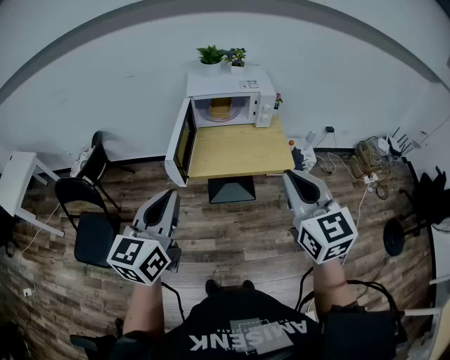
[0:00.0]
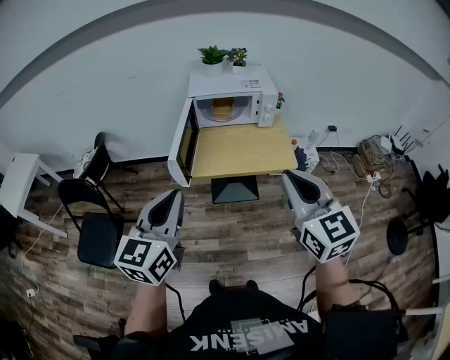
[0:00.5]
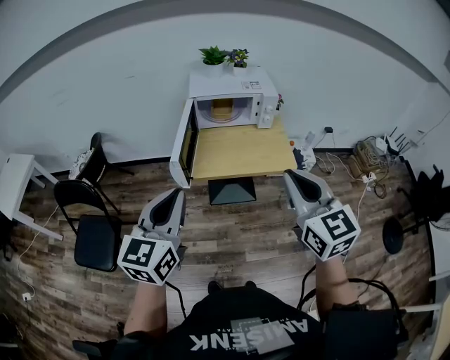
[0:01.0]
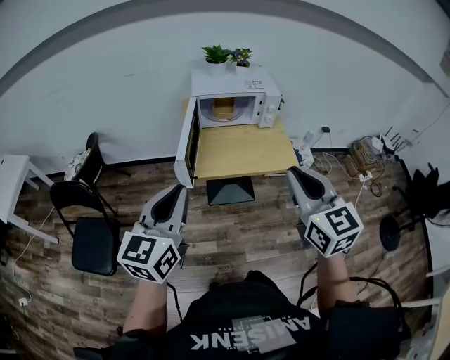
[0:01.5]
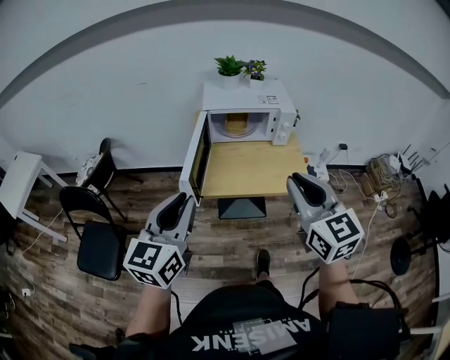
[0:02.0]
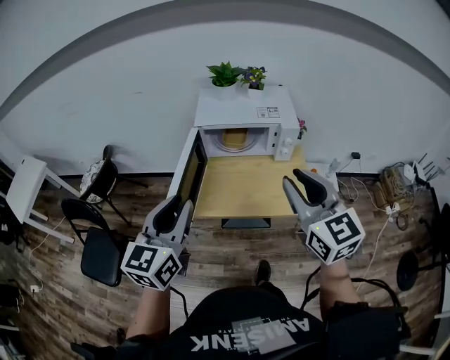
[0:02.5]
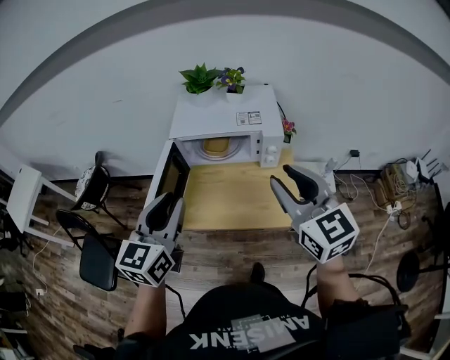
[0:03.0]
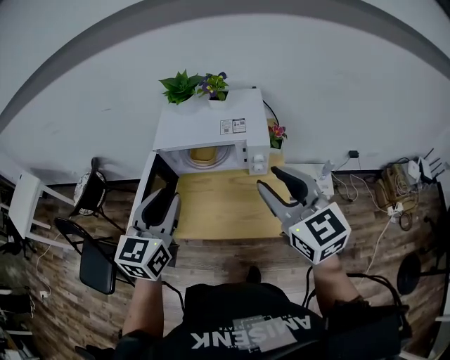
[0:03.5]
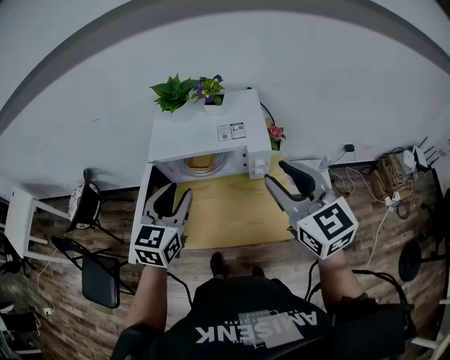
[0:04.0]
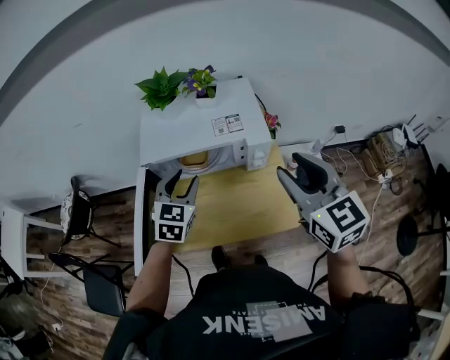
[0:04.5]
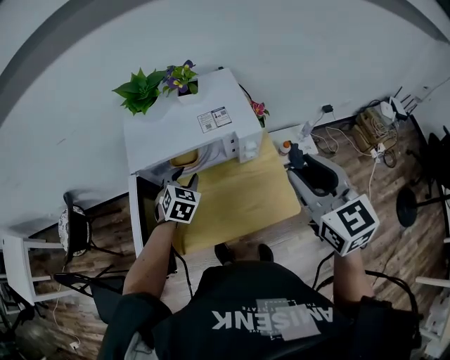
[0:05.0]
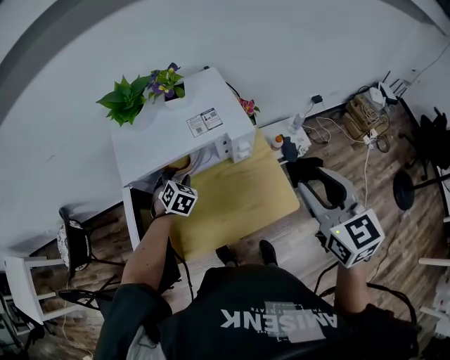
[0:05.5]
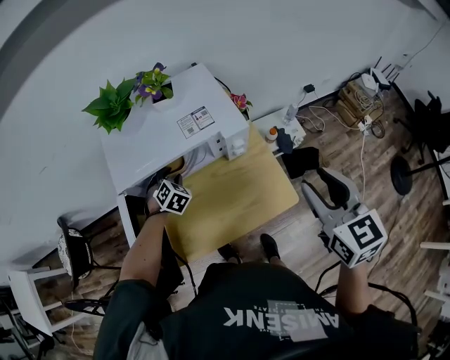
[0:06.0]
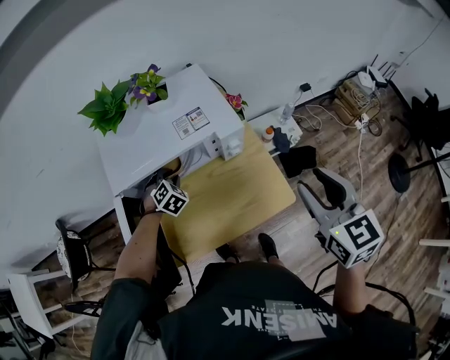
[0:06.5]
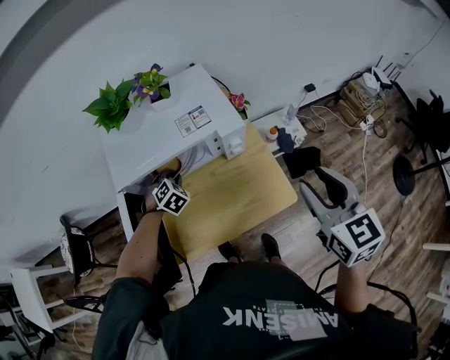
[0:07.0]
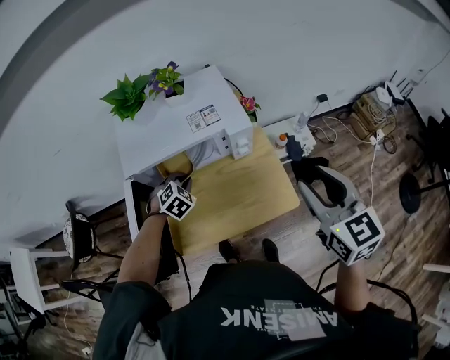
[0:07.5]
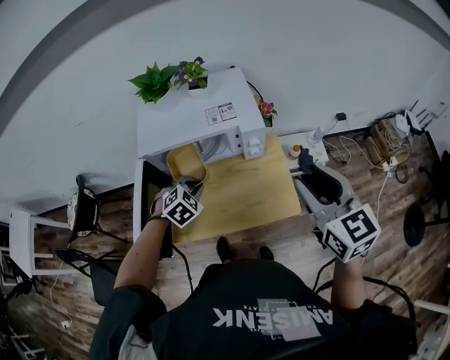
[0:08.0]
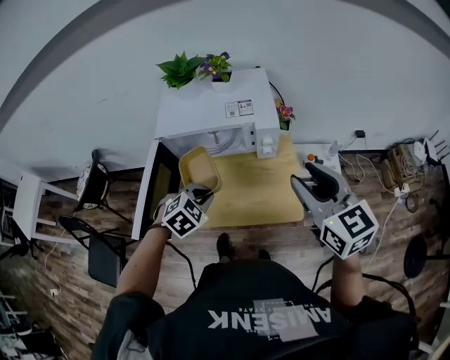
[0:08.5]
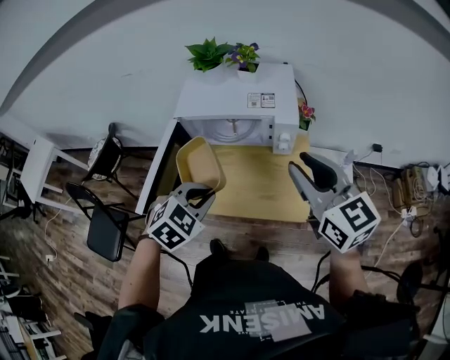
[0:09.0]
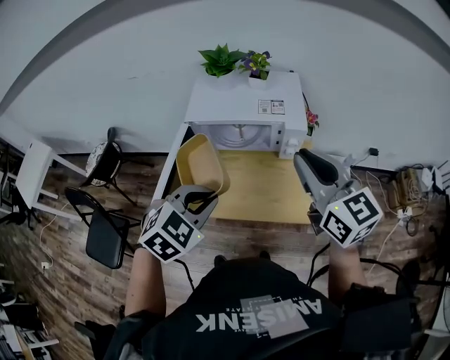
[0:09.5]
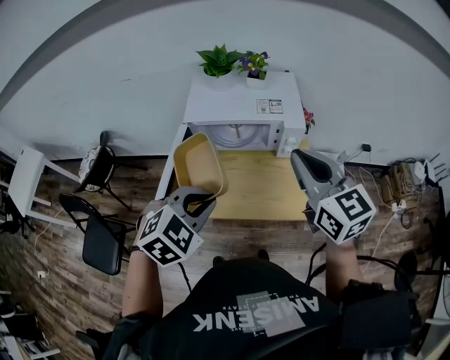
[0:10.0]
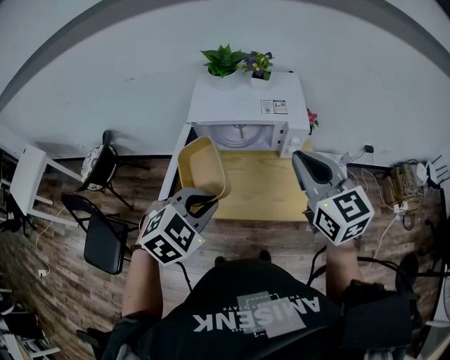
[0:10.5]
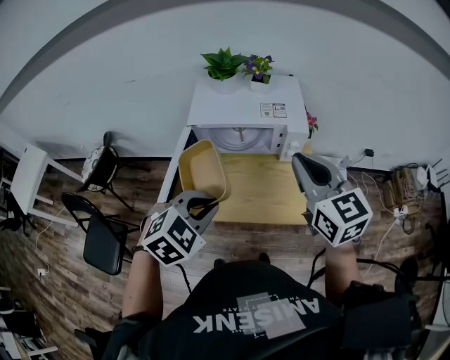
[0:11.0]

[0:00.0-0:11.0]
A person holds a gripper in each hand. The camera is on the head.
0:00.0 to 0:02.0: Both grippers travel together forward, about 10 cm.
0:02.0 to 0:03.5: The two grippers go roughly 30 cm forward and to the right. The right gripper opens.
0:03.5 to 0:05.5: The left gripper goes about 40 cm downward and forward, and tilts its fingers approximately 40 degrees downward, while the right gripper shifts roughly 10 cm downward and to the right, and rotates approximately 30 degrees.
0:05.5 to 0:07.5: The left gripper travels backward by some 5 cm, and closes its fingers.
0:07.5 to 0:09.0: The left gripper heads backward and upward, covering about 25 cm. Meanwhile the right gripper moves to the left, roughly 5 cm, and changes its angle by about 30 degrees.
0:09.0 to 0:11.0: The right gripper travels to the left by about 5 cm, and closes. The left gripper moves upward, roughly 5 cm.

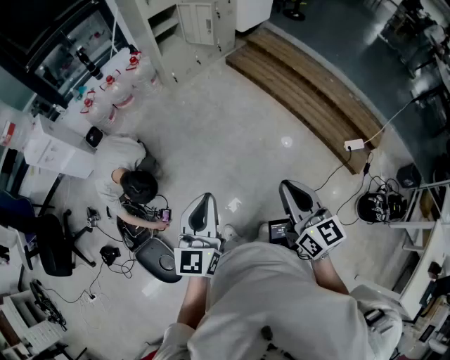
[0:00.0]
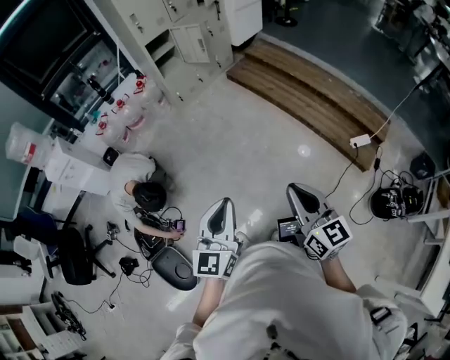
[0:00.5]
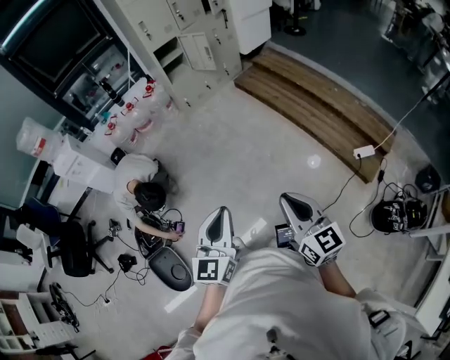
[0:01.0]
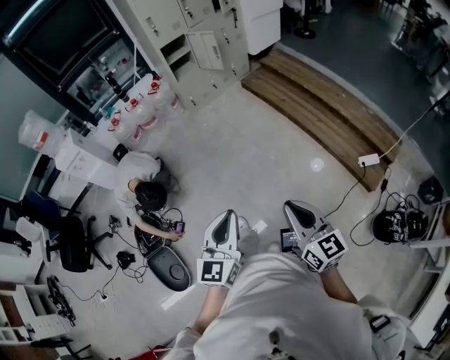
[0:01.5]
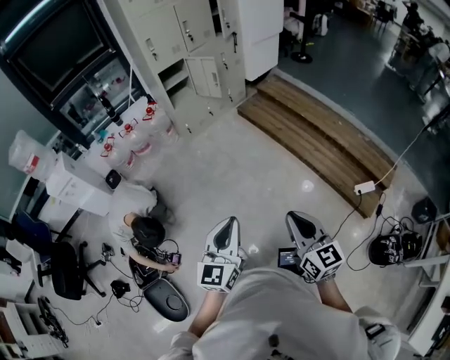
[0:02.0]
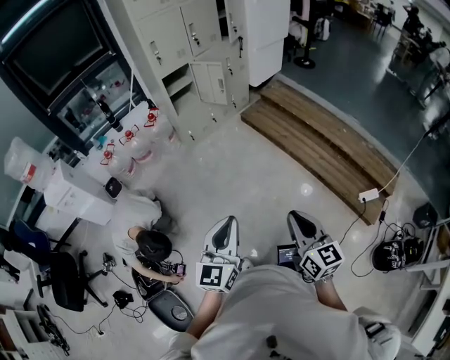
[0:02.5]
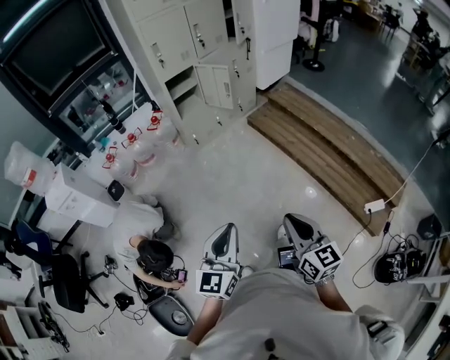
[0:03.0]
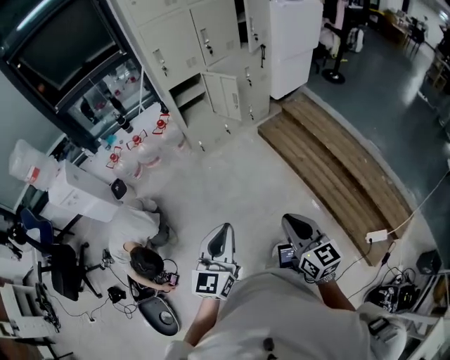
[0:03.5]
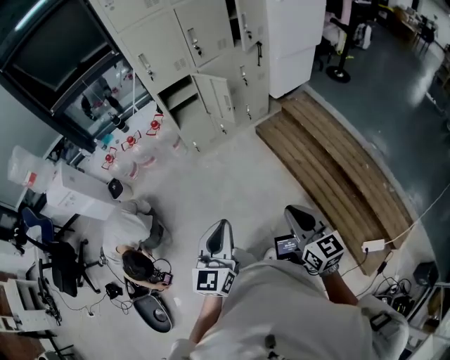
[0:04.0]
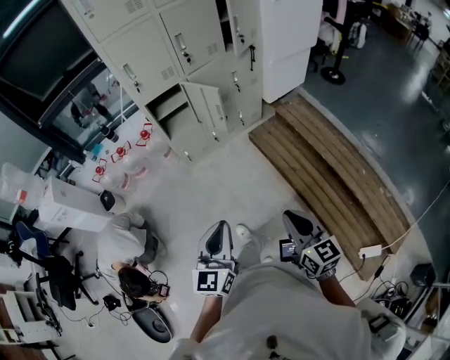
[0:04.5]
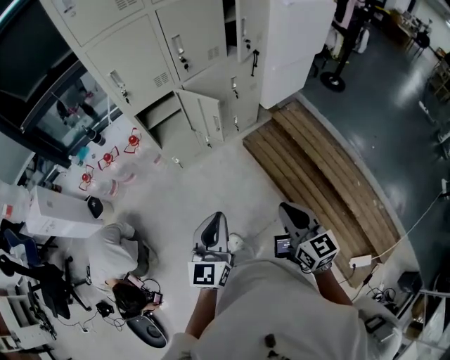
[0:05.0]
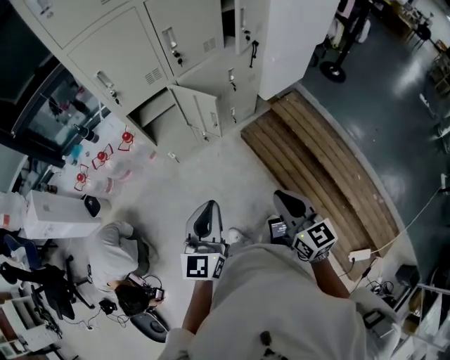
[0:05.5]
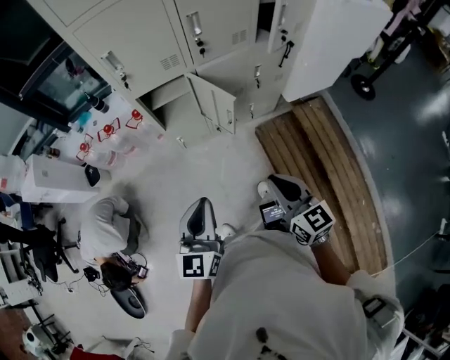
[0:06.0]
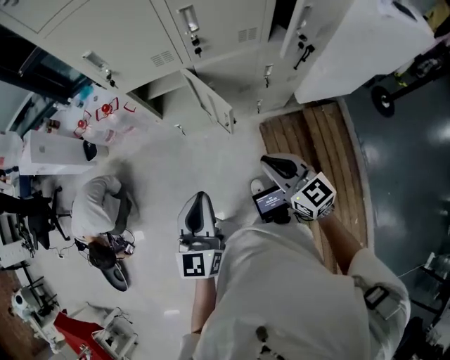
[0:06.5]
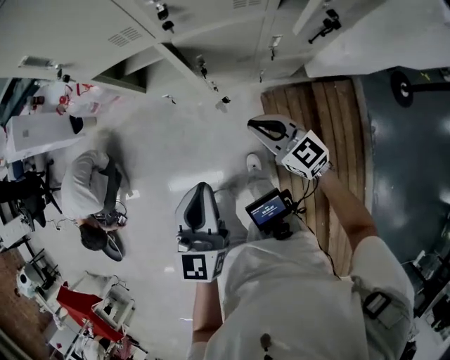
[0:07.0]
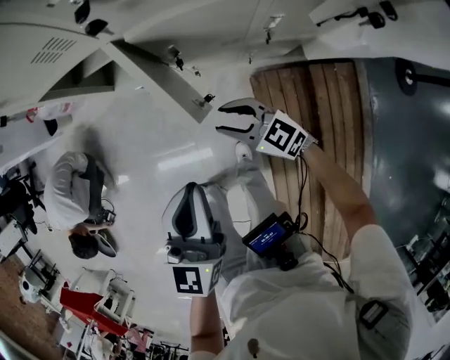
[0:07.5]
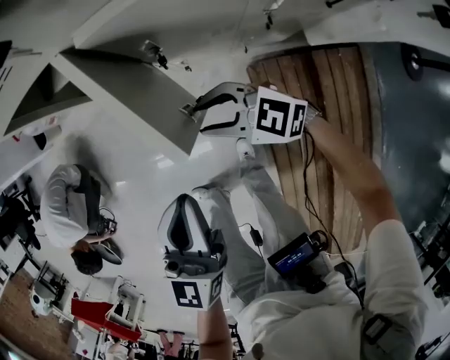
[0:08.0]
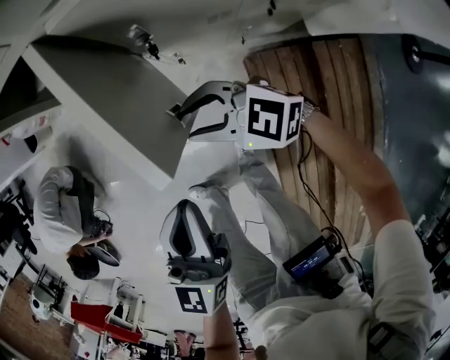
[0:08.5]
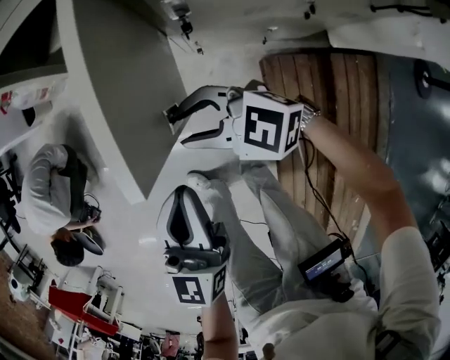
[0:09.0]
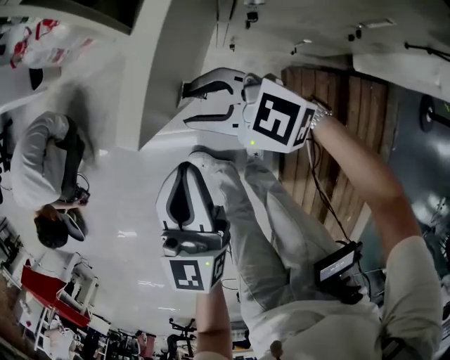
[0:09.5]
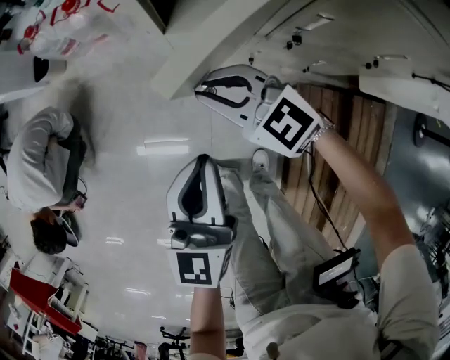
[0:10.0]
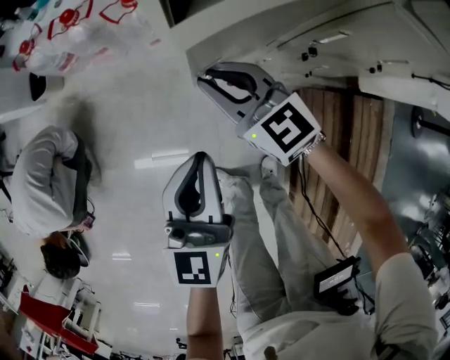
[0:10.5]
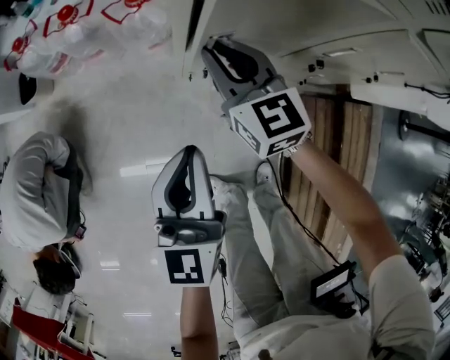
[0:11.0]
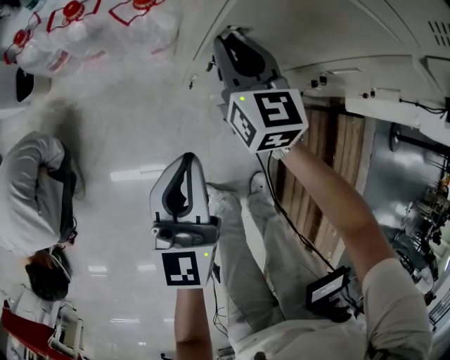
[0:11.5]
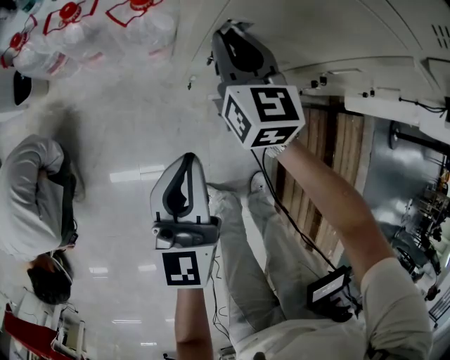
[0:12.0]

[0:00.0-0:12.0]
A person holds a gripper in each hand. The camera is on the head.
0:00.0 to 0:02.0: Both grippers travel together to the right, about 15 cm. The right gripper goes backward and returns, roughly 10 cm each way, while the left gripper moves roughly 10 cm backward and comes back.
0:02.0 to 0:04.0: Both grippers move forward, approximately 40 cm.
0:04.0 to 0:06.0: The grippers both shift forward by about 40 cm.
0:06.0 to 0:08.0: The right gripper moves downward, roughly 35 cm, swivels some 70 degrees, and opens its fingers. Meanwhile the left gripper changes place by roughly 35 cm.
0:08.0 to 0:10.0: The right gripper heads to the left and forward, covering about 25 cm, and closes its fingers. The left gripper is displaced to the left, forward and downward by approximately 25 cm.
0:10.0 to 0:12.0: The right gripper changes place by roughly 20 cm, and rotates approximately 50 degrees; the left gripper moves approximately 15 cm.

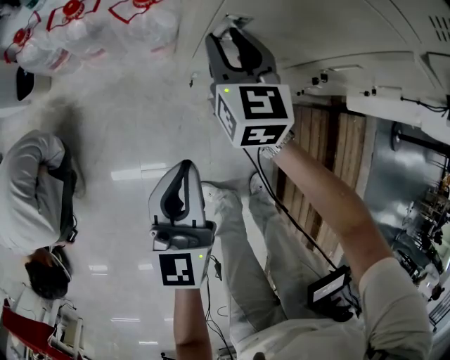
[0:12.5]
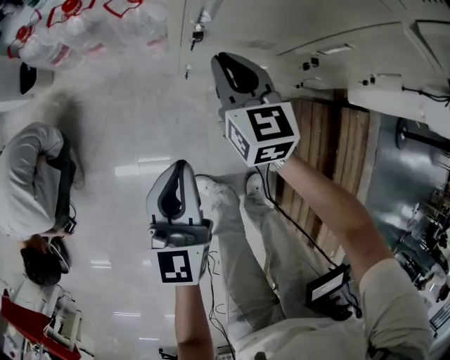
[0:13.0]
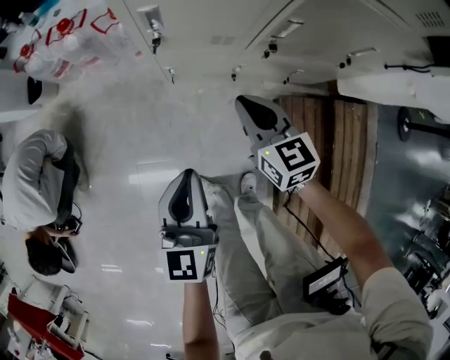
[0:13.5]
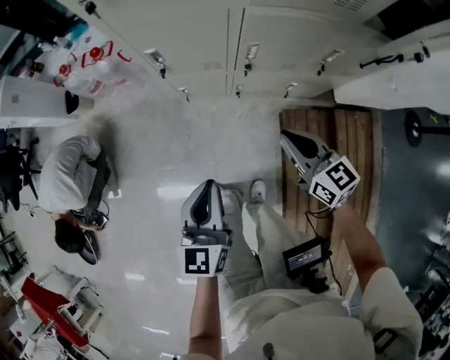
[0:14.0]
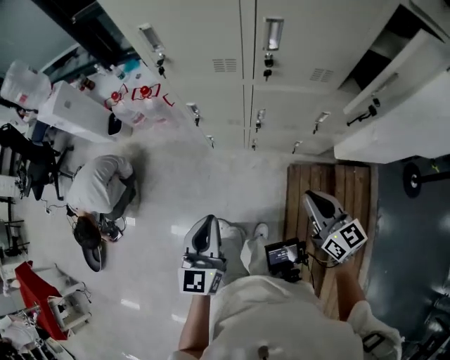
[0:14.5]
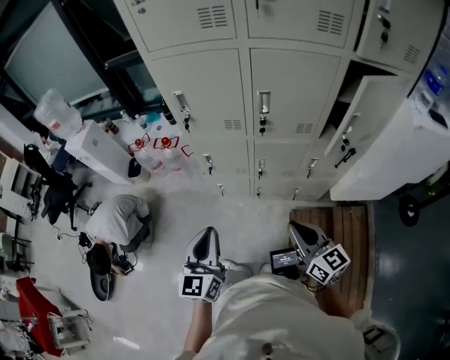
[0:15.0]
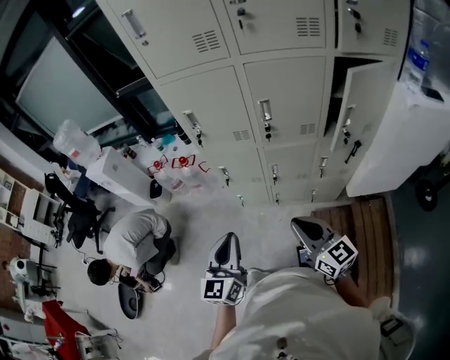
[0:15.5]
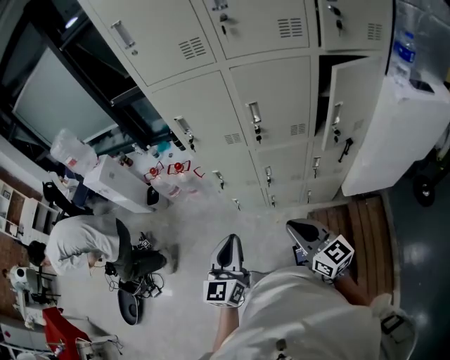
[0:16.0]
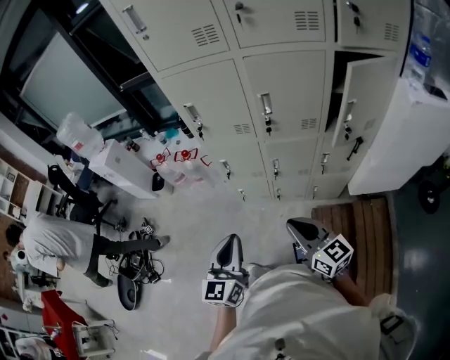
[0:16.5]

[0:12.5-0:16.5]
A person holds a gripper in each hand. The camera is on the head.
0:12.5 to 0:14.5: The left gripper goes some 40 cm upward, backward and to the right. Meanwhile the right gripper shifts about 60 cm backward, to the right and upward, swivels about 30 degrees, and closes up.
0:14.5 to 0:16.5: The right gripper goes approximately 15 cm upward, to the left and backward, while the left gripper shifts roughly 15 cm upward and backward.
